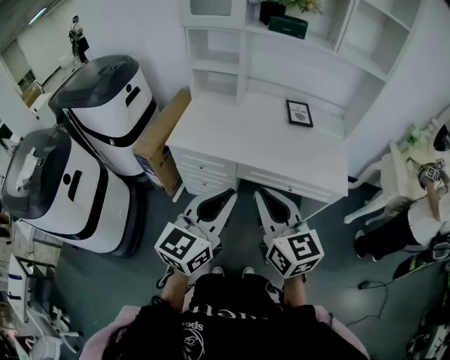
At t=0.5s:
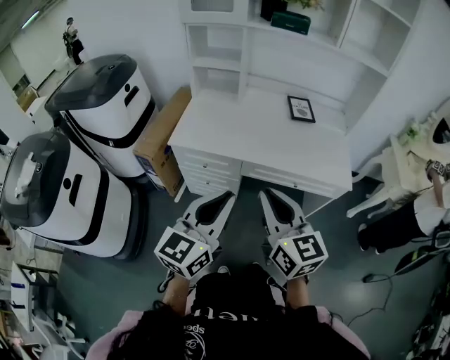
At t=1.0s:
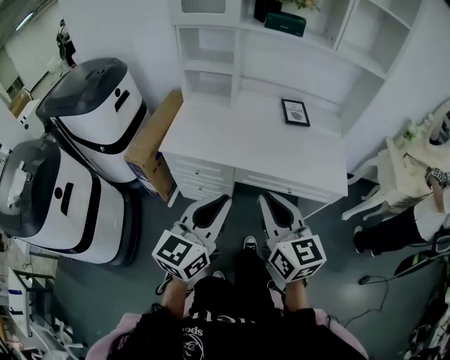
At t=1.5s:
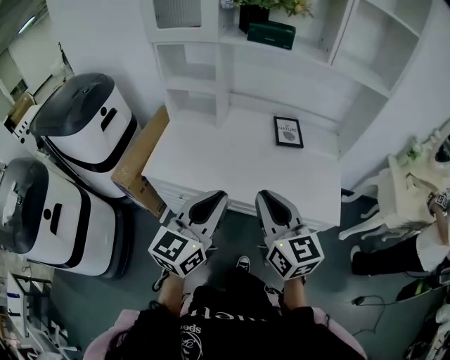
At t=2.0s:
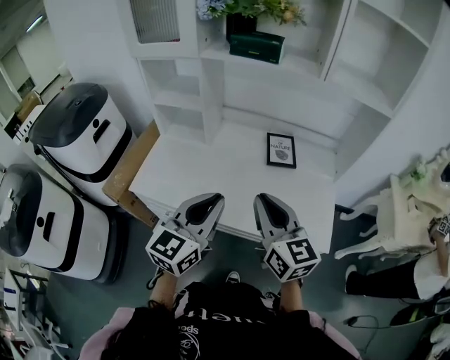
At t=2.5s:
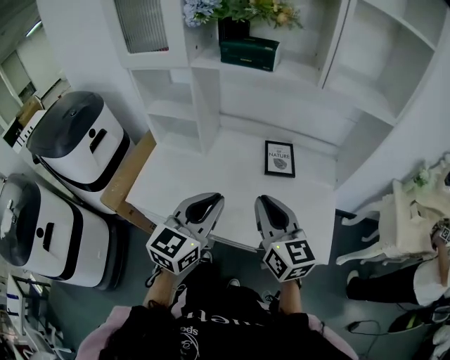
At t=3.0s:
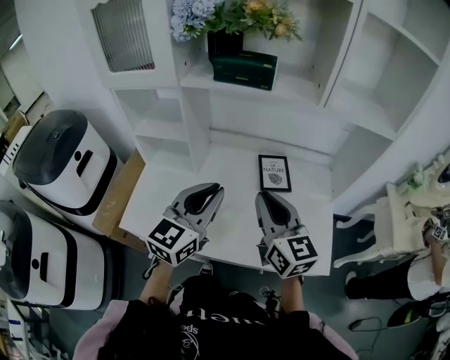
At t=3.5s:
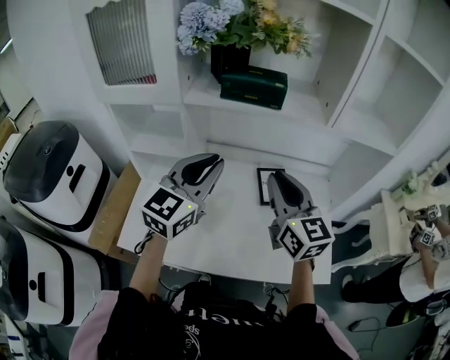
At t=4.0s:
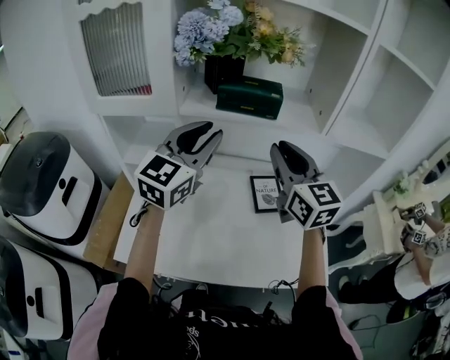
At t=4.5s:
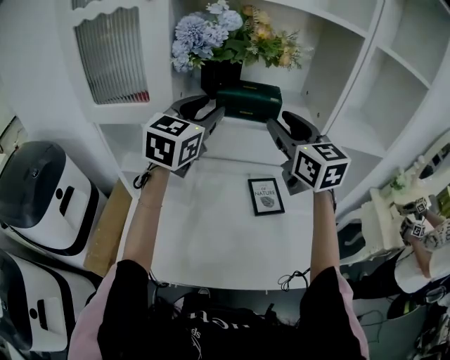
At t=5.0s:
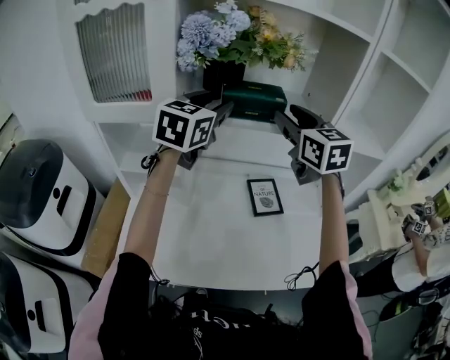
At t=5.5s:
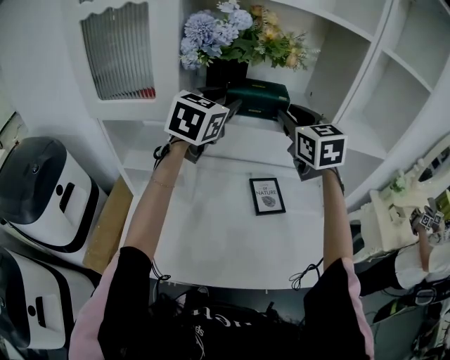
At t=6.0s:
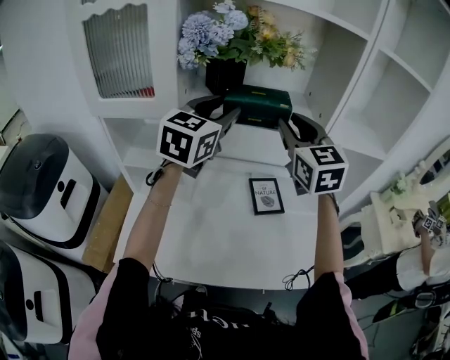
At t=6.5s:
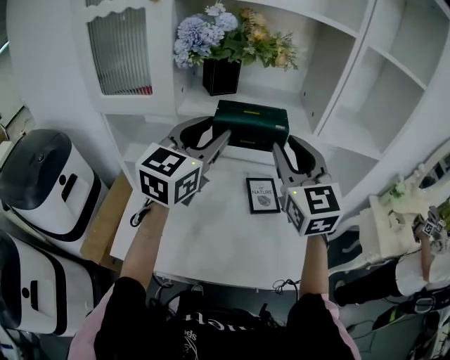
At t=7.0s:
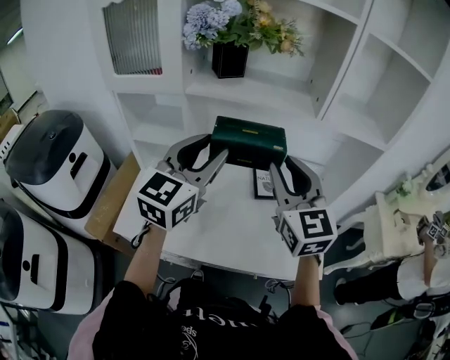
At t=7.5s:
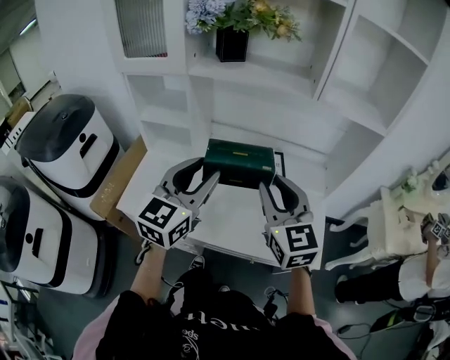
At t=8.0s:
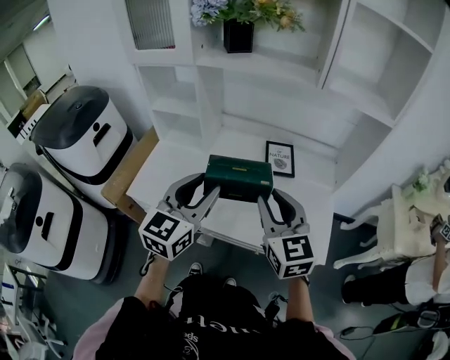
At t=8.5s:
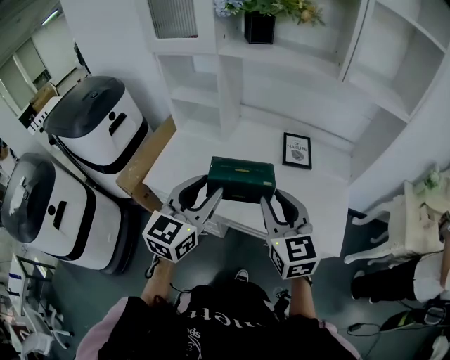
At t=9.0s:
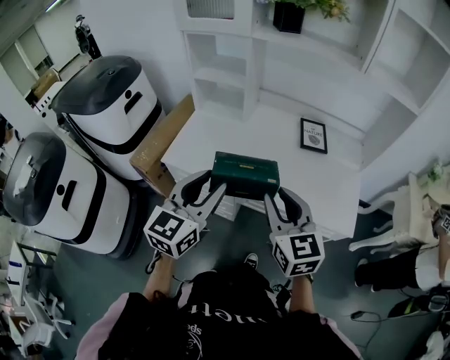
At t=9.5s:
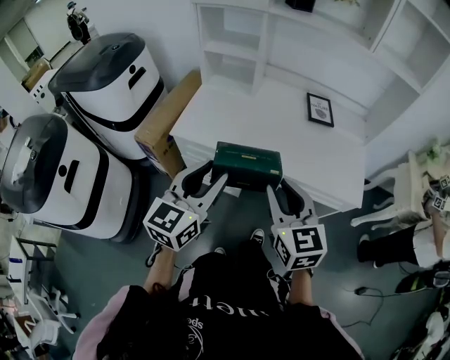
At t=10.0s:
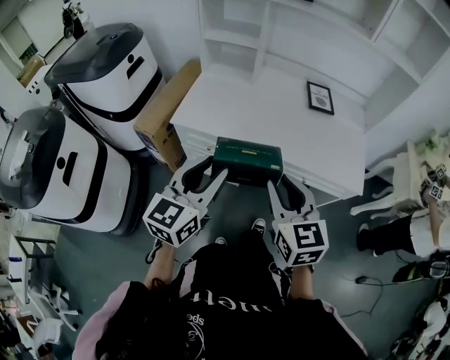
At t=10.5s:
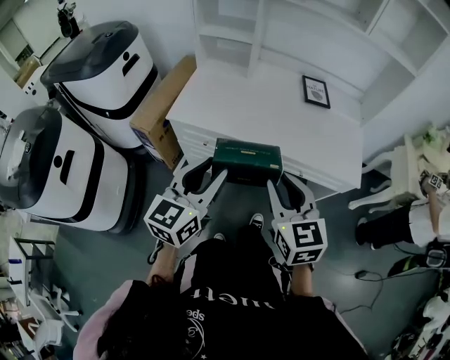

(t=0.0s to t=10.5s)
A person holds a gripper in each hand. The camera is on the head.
t=0.0s - t=2.0s: The grippers both shift forward and to the right by approximately 30 cm.
t=2.0s - t=4.0s: The two grippers go some 35 cm forward and upward. The left gripper turns by approximately 20 degrees.
t=4.0s - t=6.5s: The left gripper reaches approximately 10 cm forward, then returns. The right gripper moves approximately 10 cm forward and comes back.
t=6.5s - t=8.5s: Both grippers move backward and downward, approximately 35 cm. The right gripper rotates roughly 20 degrees.
t=8.5s - t=10.5s: The grippers both shift backward and to the left by approximately 25 cm.

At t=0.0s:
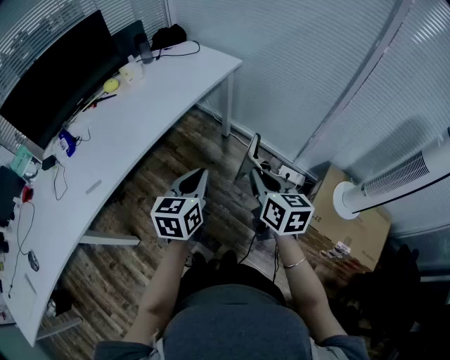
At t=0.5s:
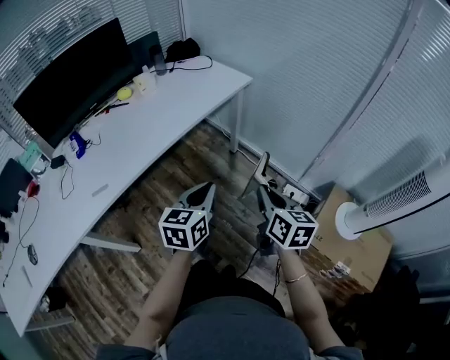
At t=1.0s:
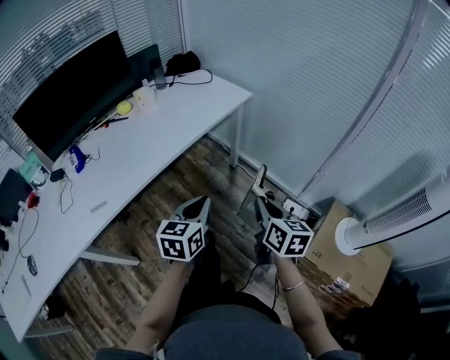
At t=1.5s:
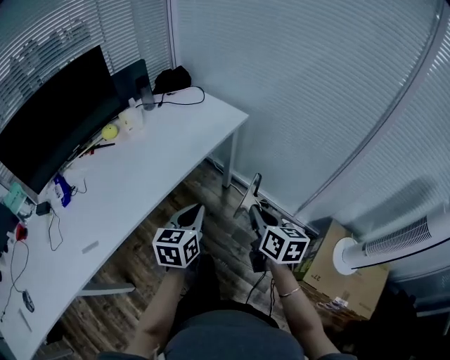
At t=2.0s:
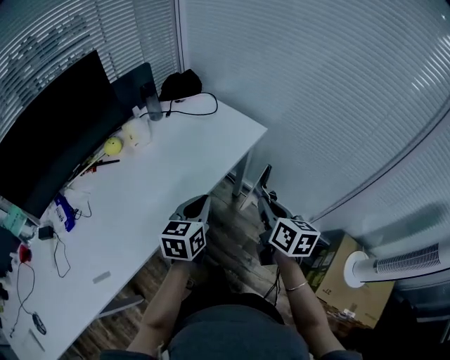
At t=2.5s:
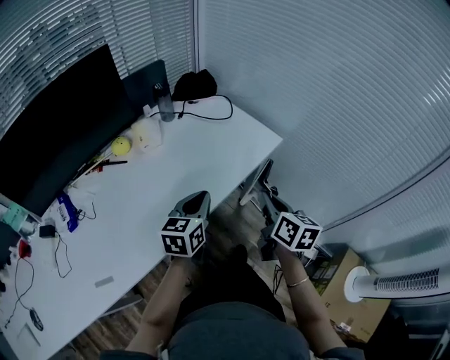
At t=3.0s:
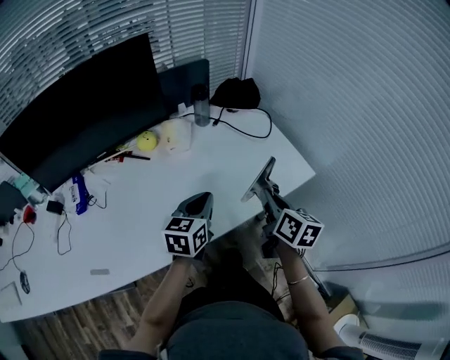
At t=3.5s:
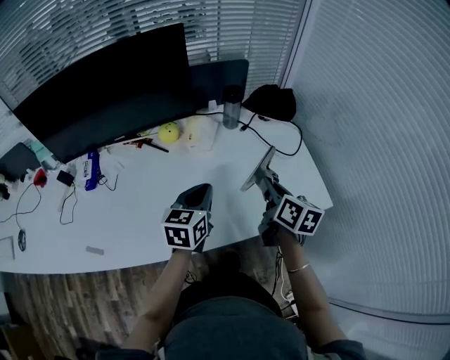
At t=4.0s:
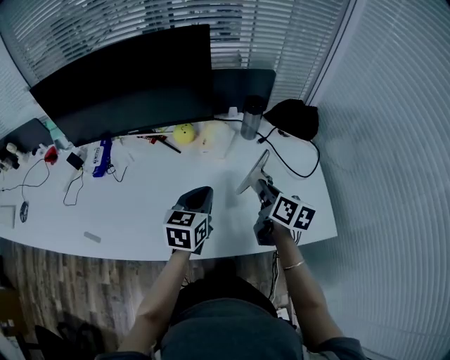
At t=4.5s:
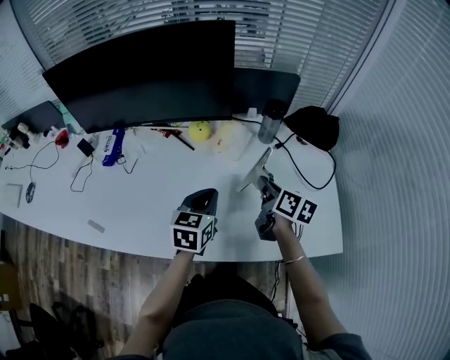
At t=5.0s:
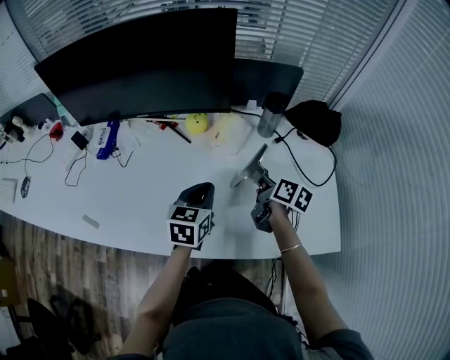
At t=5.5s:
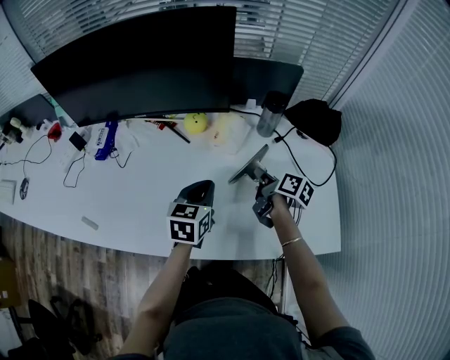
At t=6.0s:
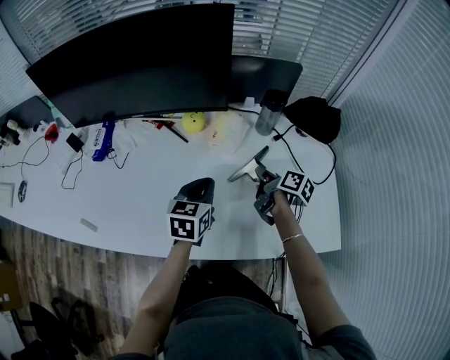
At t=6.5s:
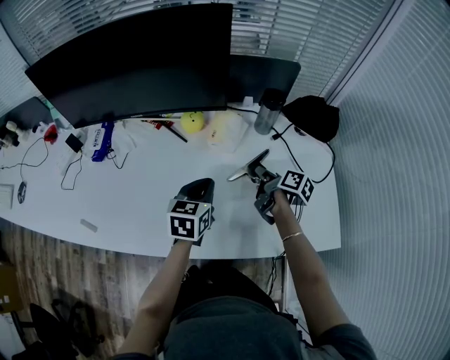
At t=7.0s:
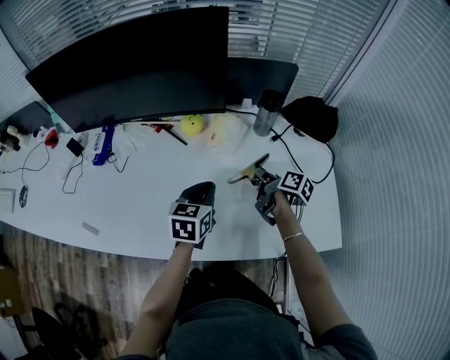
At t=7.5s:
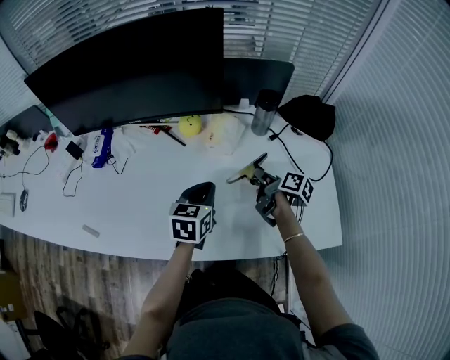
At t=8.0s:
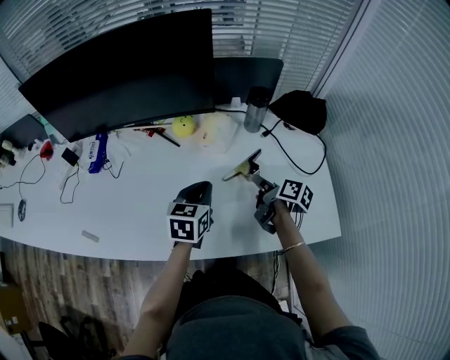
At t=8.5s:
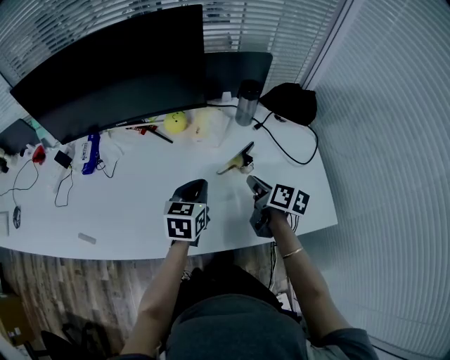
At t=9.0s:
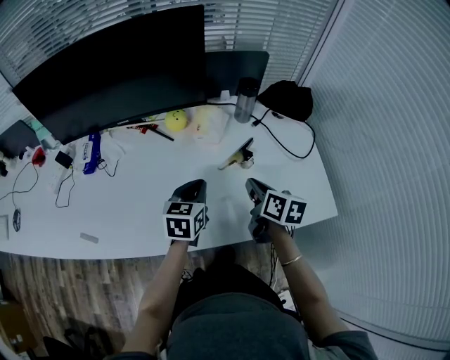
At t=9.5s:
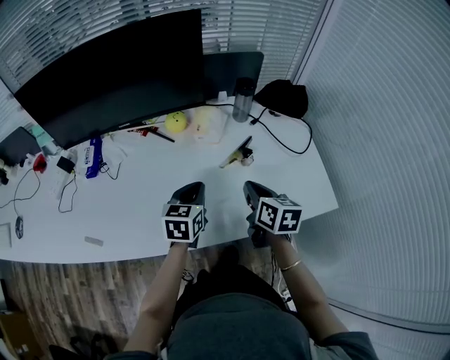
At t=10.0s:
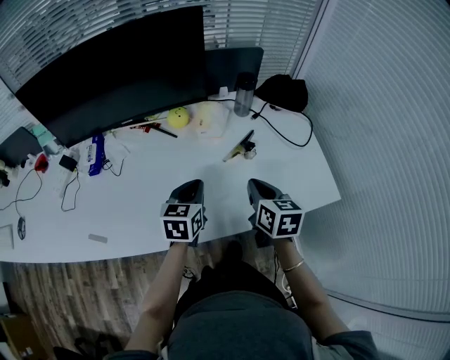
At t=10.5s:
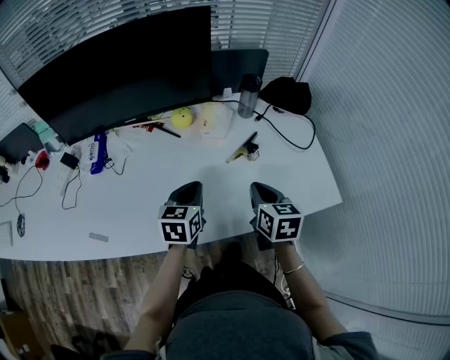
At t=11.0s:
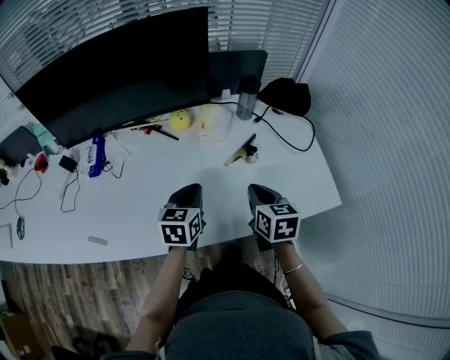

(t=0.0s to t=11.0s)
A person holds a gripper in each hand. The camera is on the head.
t=0.0s - t=2.0s: The two grippers go approximately 30 cm forward.
t=2.0s - t=3.5s: The right gripper ends up about 35 cm from where it was, and rotates approximately 30 degrees, while the left gripper moves about 20 cm, and turns by some 30 degrees.
t=3.5s - t=5.5s: The right gripper travels forward and downward by roughly 20 cm, and swivels roughly 30 degrees; the left gripper is displaced forward and downward by roughly 10 cm.
t=5.5s - t=7.5s: The grippers make only small movements.
t=7.5s - t=9.0s: The right gripper travels backward and upward by approximately 15 cm, and swivels some 30 degrees.
t=9.0s - t=11.0s: The right gripper moves approximately 5 cm, and rotates approximately 20 degrees.

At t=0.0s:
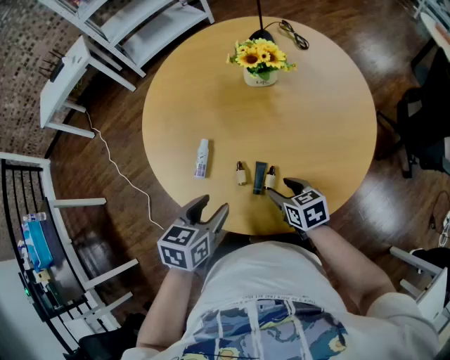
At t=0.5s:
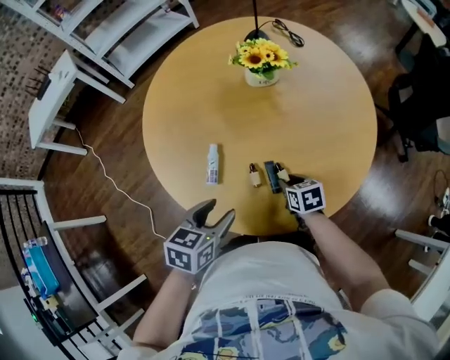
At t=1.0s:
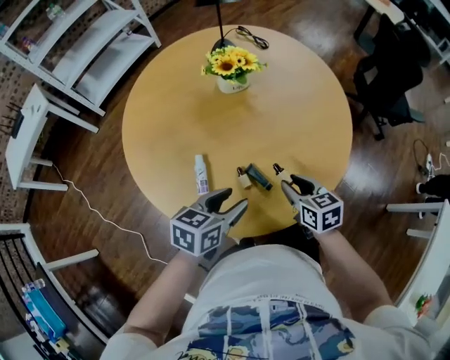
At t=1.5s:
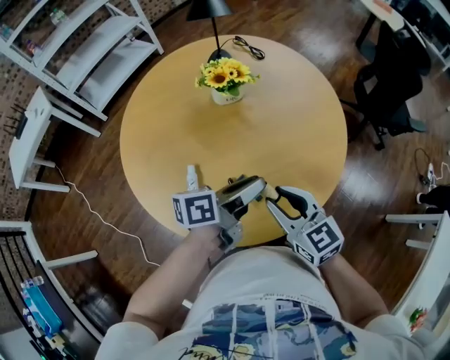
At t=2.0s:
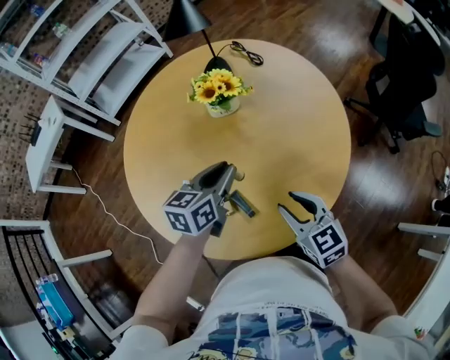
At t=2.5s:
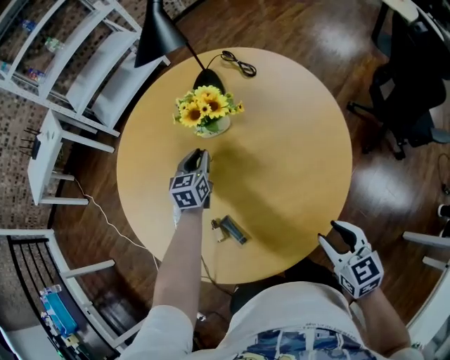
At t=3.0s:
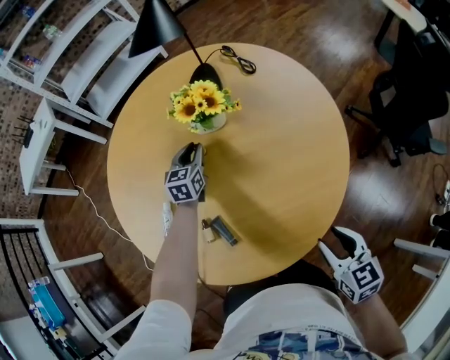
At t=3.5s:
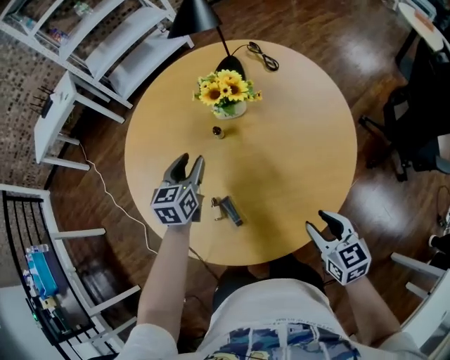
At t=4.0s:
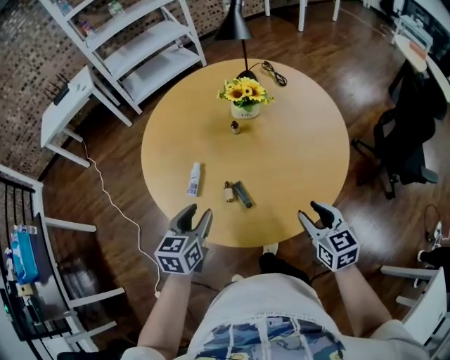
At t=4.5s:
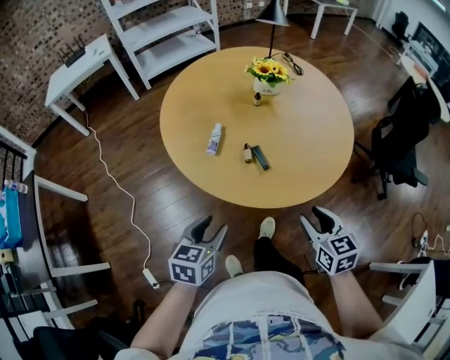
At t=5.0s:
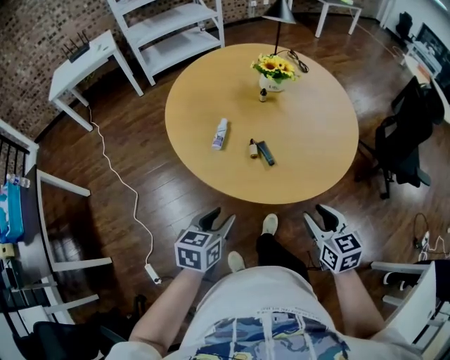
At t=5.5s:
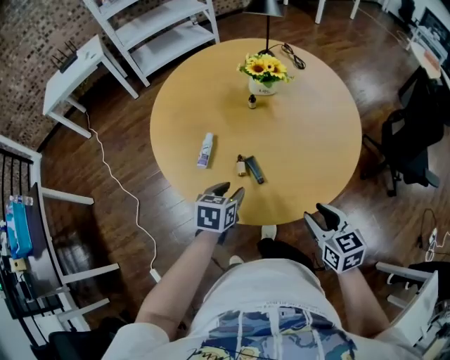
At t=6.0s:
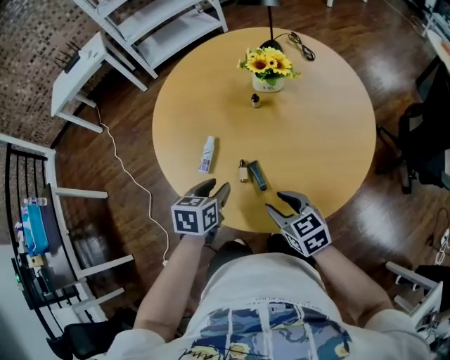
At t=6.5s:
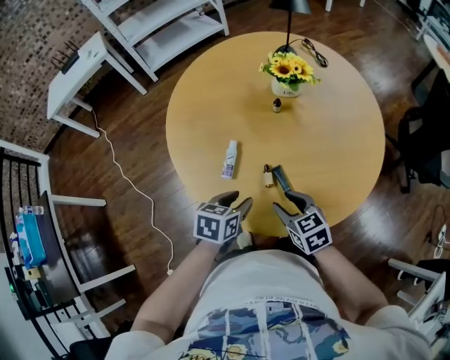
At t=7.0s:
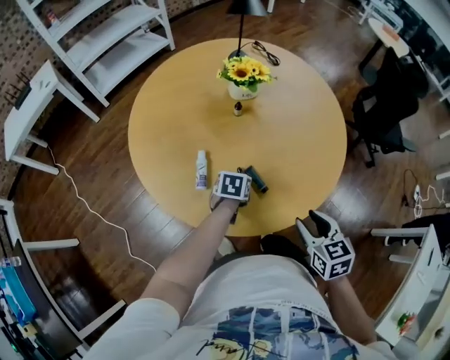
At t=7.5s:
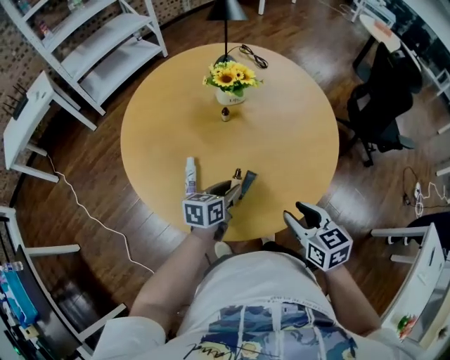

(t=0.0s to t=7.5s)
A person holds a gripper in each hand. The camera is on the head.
t=0.0s - t=2.0s: The left gripper moves roughly 20 cm, changes its angle by some 20 degrees, and closes, while the right gripper goes up and down, about 25 cm each way, reversing 2 times, and changes its angle by roughly 30 degrees.
t=2.0s - t=4.0s: The right gripper heads backward, covering roughly 10 cm, and moves about 15 cm to the right and comes back. The left gripper goes roughly 25 cm backward and to the left, turns by about 20 degrees, and opens.
t=4.0s - t=5.5s: The right gripper travels backward by about 5 cm. The left gripper goes roughly 10 cm downward, and goes backward and returns, approximately 20 cm each way.
t=5.5s - t=7.5s: The left gripper goes downward and returns, roughly 10 cm each way, and swivels some 30 degrees. The right gripper goes downward and returns, roughly 5 cm each way.
